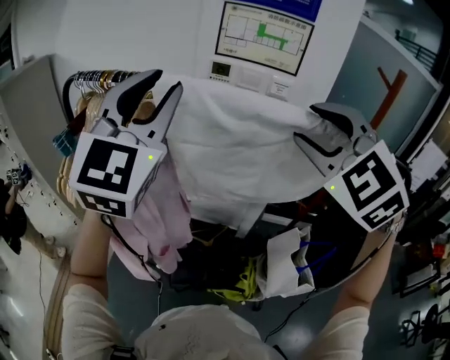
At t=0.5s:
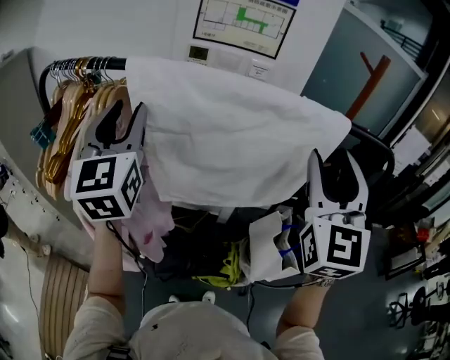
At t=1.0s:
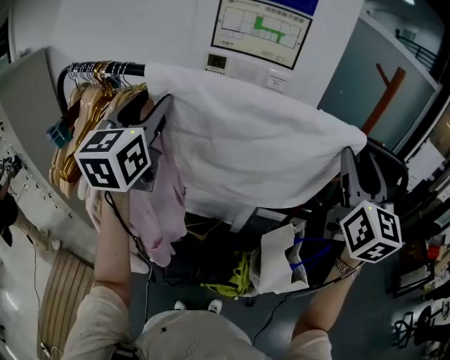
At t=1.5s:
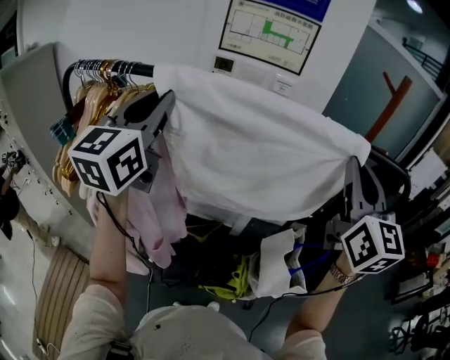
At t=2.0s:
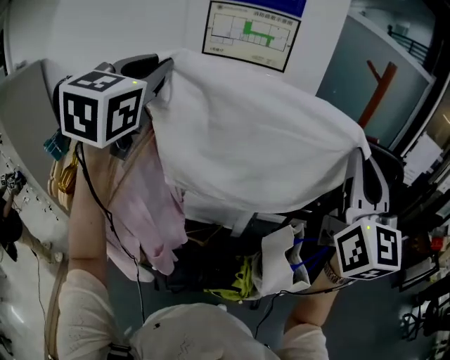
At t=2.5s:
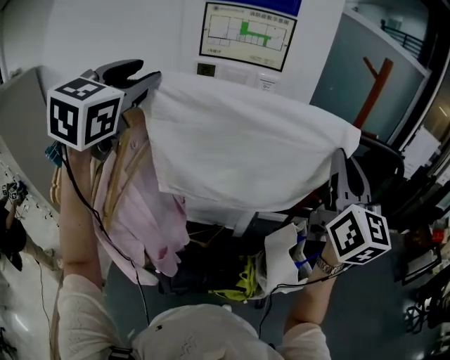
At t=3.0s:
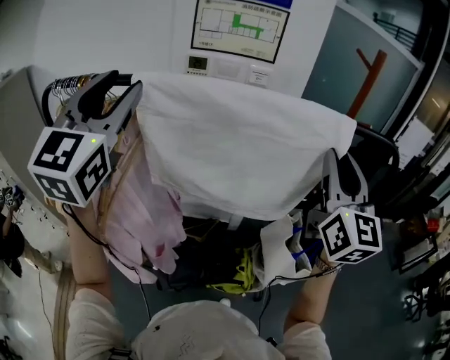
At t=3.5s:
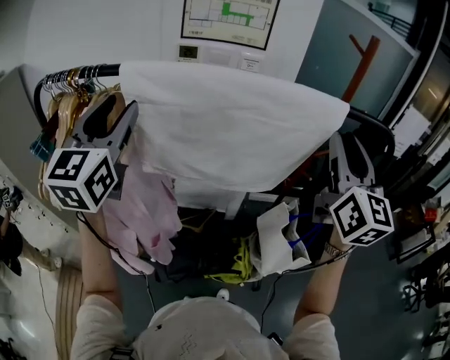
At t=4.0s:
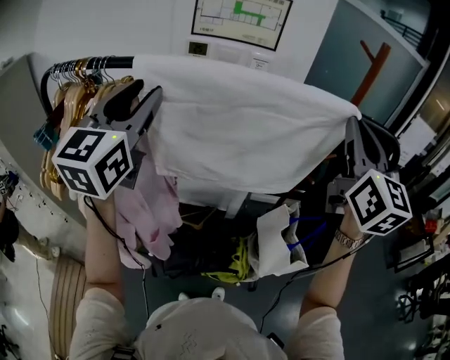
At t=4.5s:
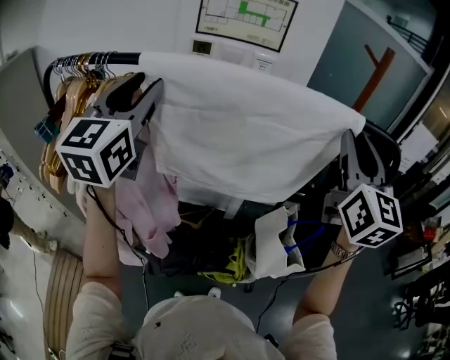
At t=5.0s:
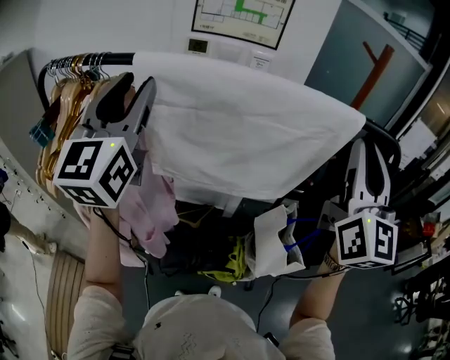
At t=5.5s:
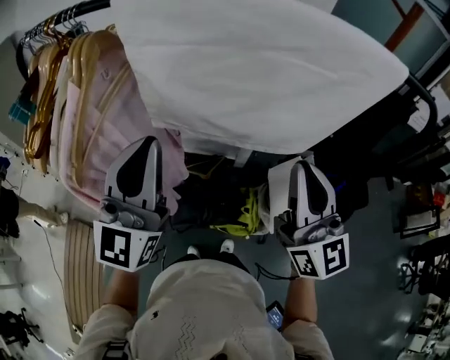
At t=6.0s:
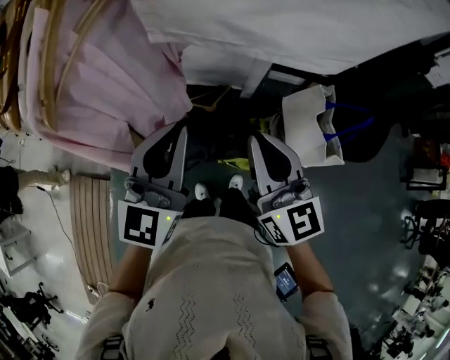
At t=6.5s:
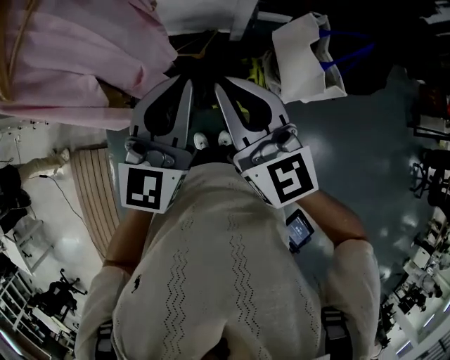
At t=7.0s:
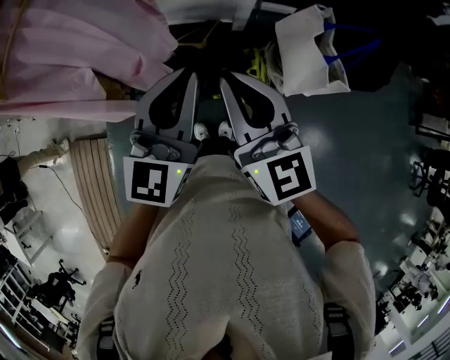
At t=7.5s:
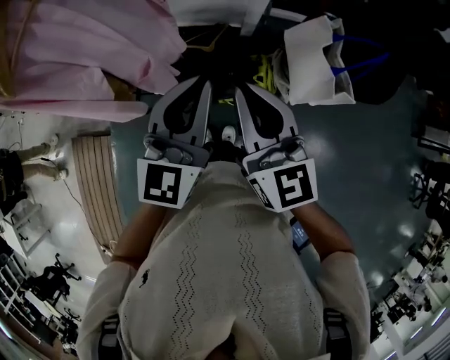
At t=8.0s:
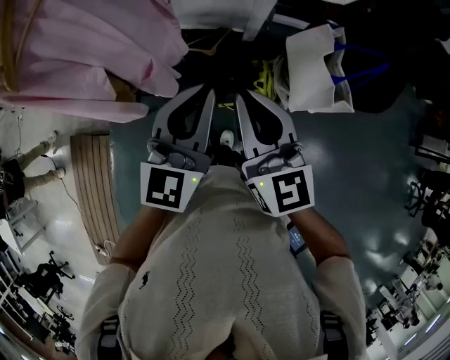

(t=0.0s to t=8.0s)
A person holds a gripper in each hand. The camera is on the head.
t=0.0s - t=2.0s: The left gripper goes about 5 cm forward, reaches roughly 10 cm downward, then returns, and opens and closes again; the right gripper moves to the right, roughly 15 cm, tips its fingers upward by some 40 degrees, and closes its fingers.
t=2.0s - t=4.0s: The left gripper is displaced downward by about 10 cm, and opens, while the right gripper opens, then closes again.
t=4.0s - t=6.0s: The left gripper moves downward and backward, some 35 cm, and closes up. The right gripper heads downward, to the left and backward, covering about 40 cm, and rotates approximately 30 degrees.
t=6.0s - t=8.0s: The left gripper heads to the right and downward, covering about 10 cm. Meanwhile the right gripper shifts by some 5 cm.

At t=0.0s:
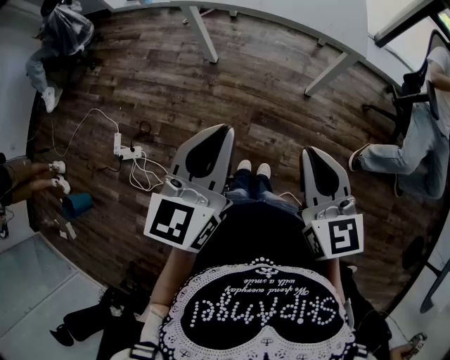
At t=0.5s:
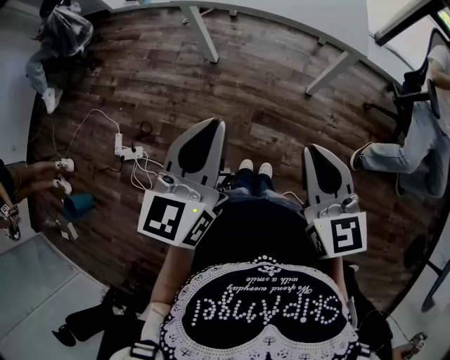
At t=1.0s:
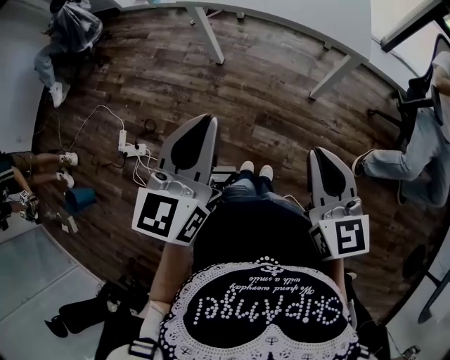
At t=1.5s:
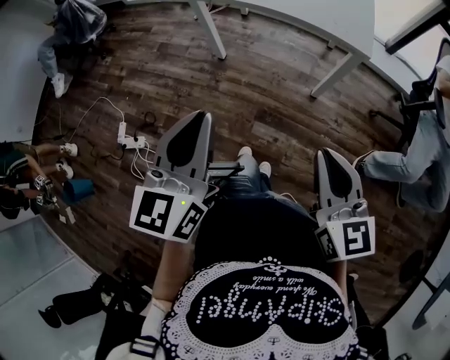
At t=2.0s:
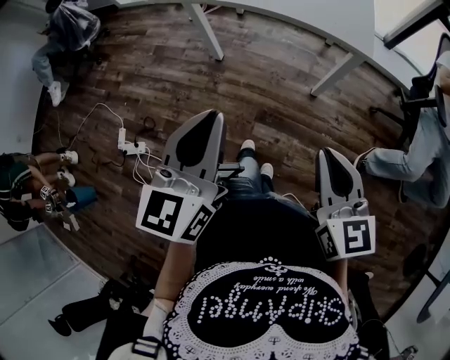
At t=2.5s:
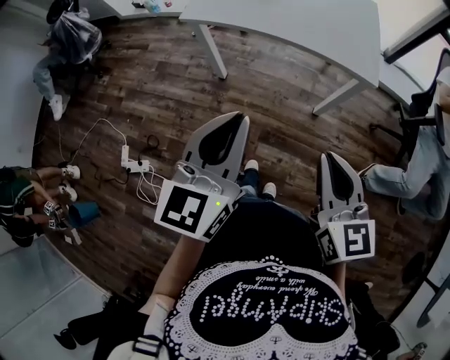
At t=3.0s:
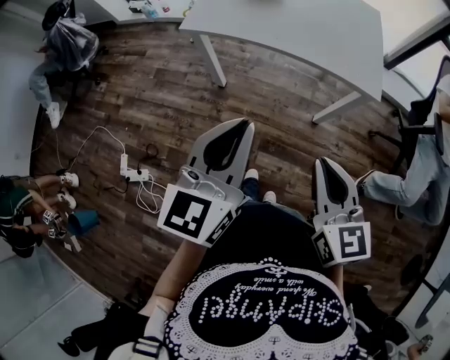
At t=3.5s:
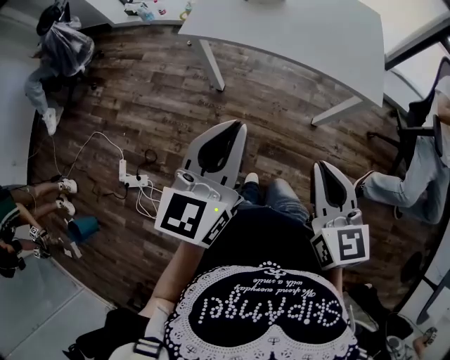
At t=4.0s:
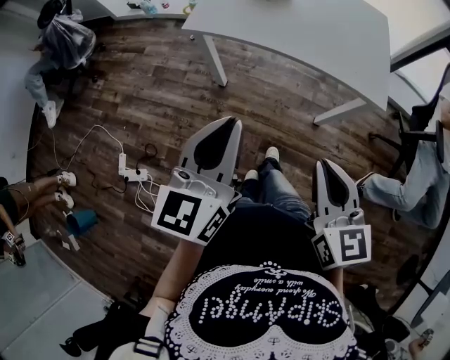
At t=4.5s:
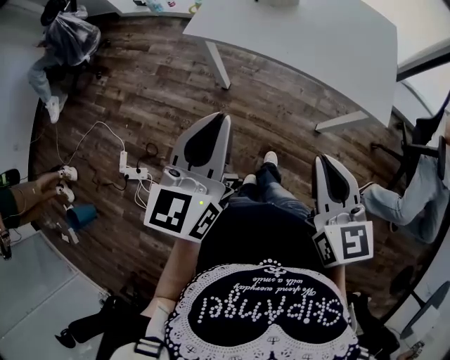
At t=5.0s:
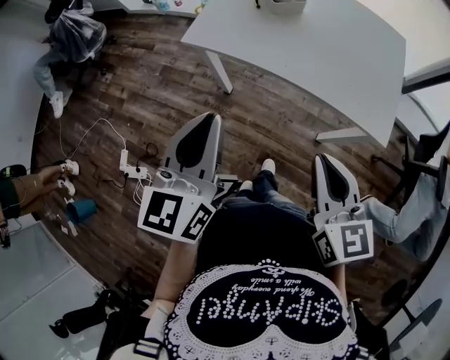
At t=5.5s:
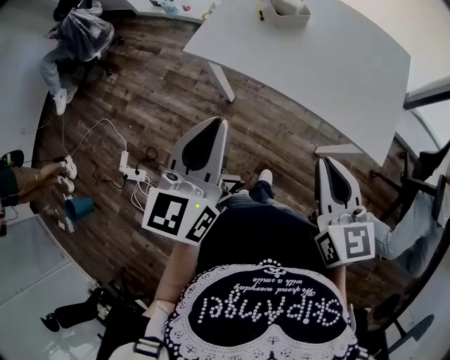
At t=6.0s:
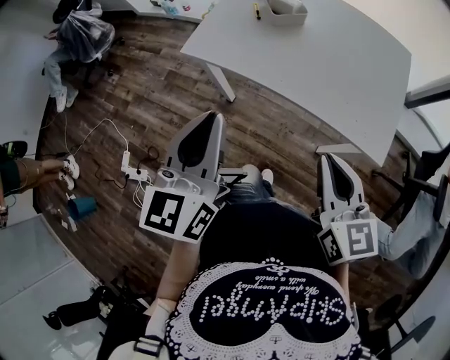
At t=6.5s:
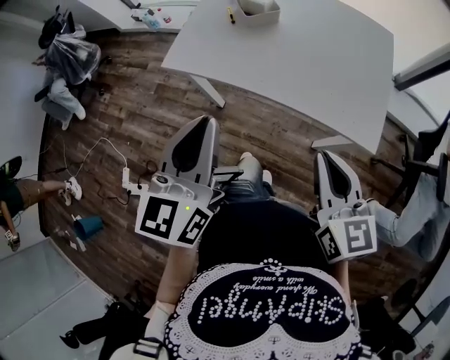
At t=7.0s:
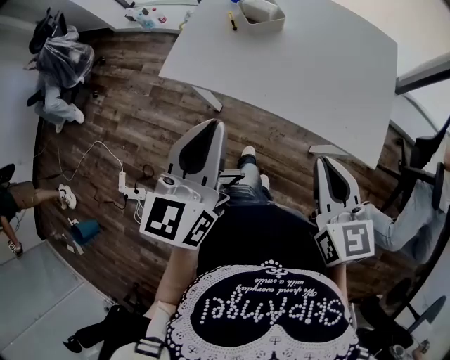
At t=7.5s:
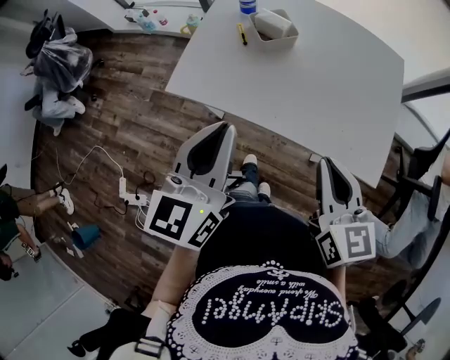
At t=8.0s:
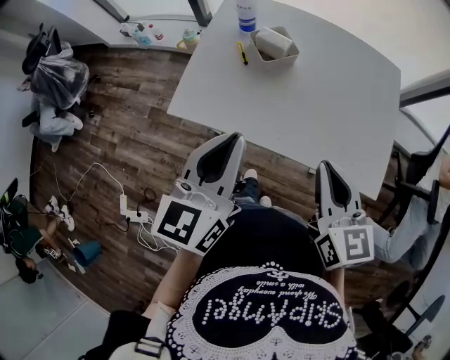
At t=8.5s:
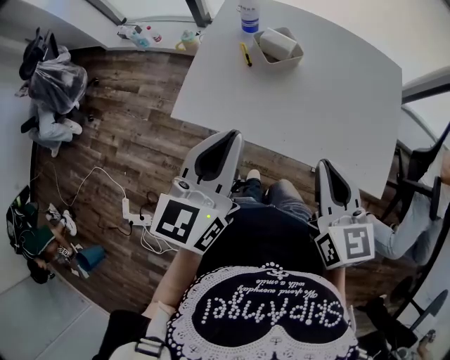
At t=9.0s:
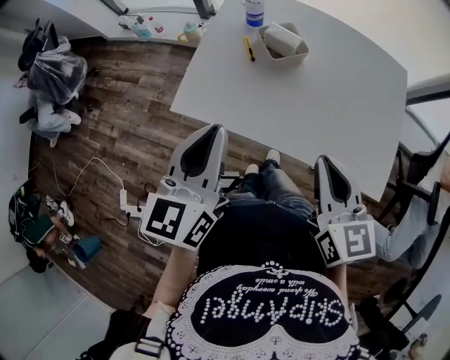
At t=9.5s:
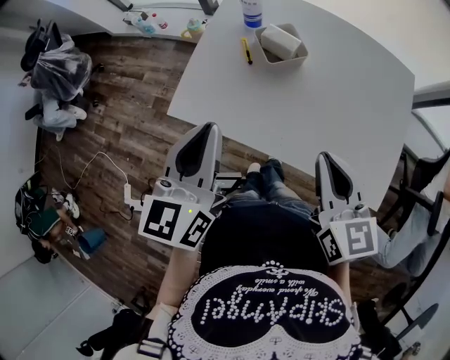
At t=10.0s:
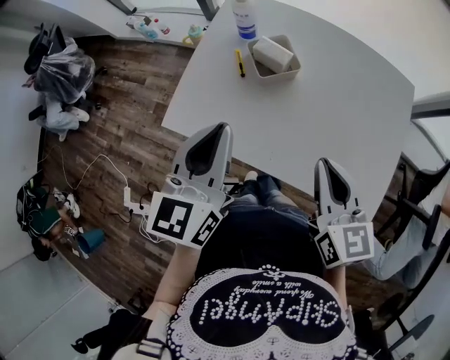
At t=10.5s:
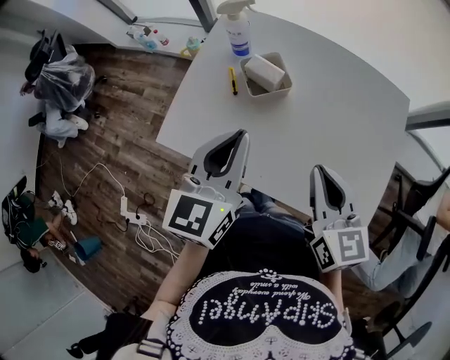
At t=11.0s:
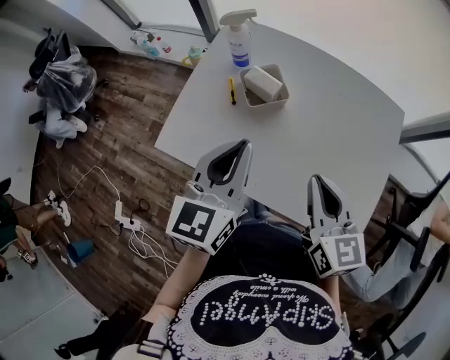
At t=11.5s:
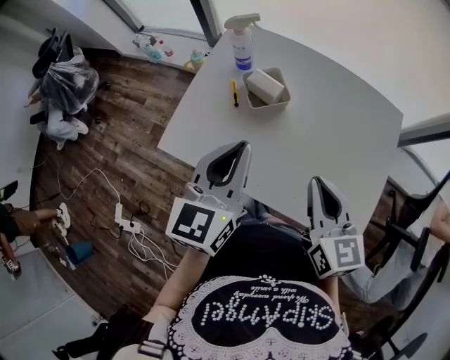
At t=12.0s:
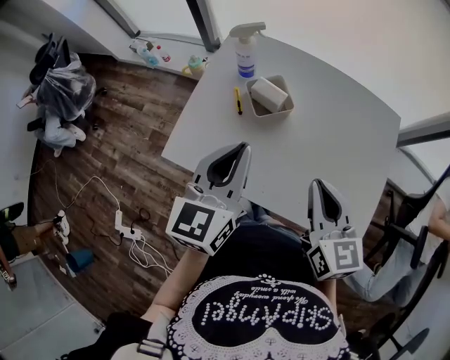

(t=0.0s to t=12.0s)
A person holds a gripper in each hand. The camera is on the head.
t=0.0s - t=2.0s: The right gripper is displaced to the right by some 5 cm.
t=2.0s - t=4.0s: The left gripper shifts about 15 cm forward; the right gripper shifts about 15 cm forward and to the left.
t=4.0s - t=6.0s: The right gripper travels forward and to the right by some 15 cm; the left gripper heads forward, covering about 10 cm.
t=6.0s - t=8.0s: Both grippers travel together forward, approximately 15 cm.
t=8.0s - t=10.0s: Both grippers move forward, about 10 cm.

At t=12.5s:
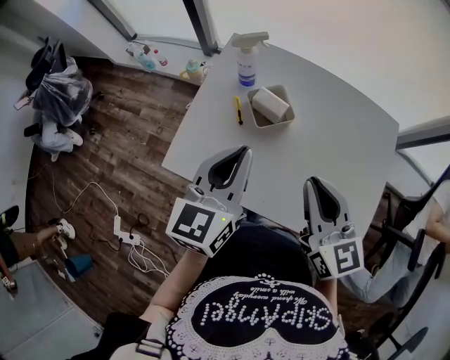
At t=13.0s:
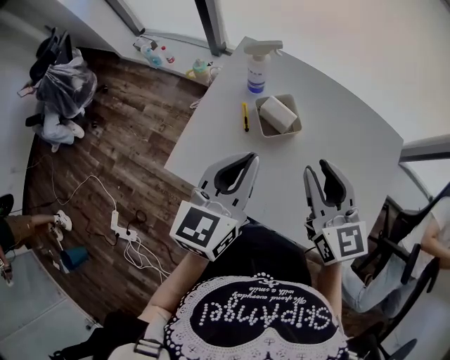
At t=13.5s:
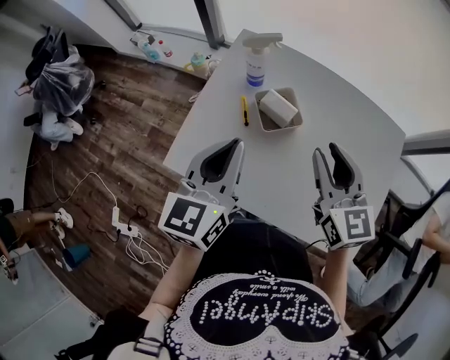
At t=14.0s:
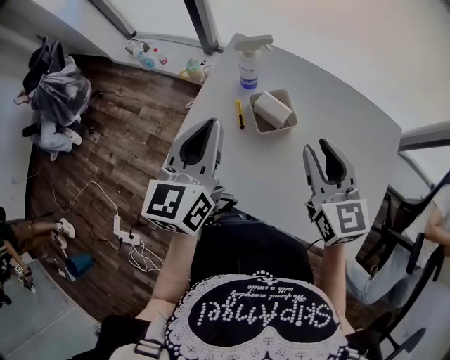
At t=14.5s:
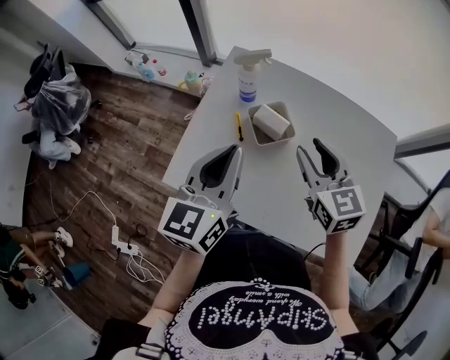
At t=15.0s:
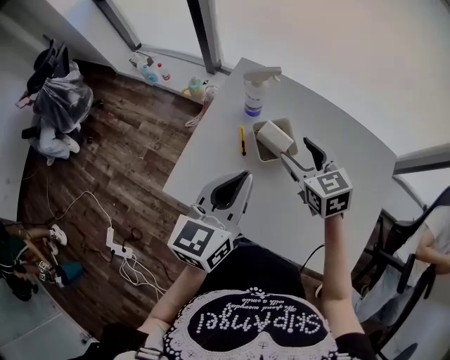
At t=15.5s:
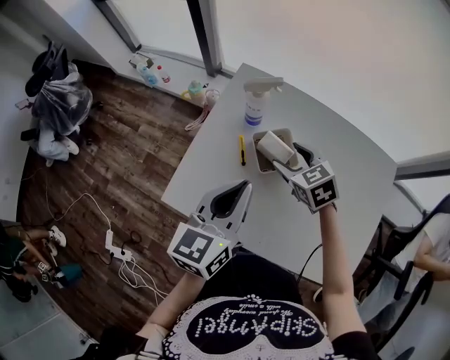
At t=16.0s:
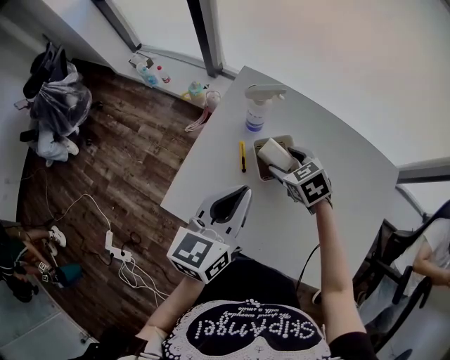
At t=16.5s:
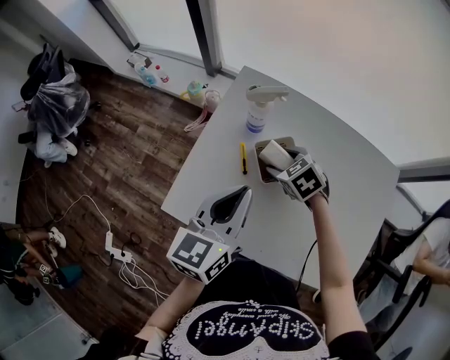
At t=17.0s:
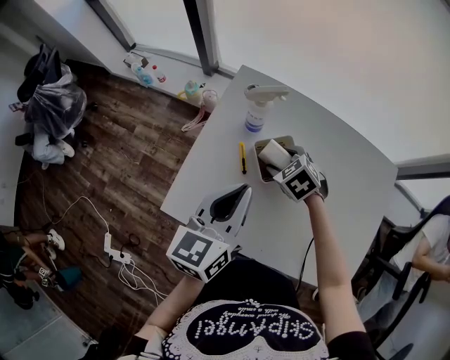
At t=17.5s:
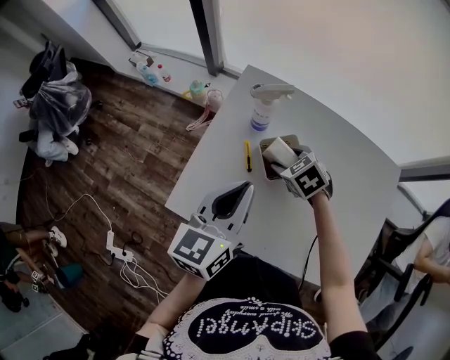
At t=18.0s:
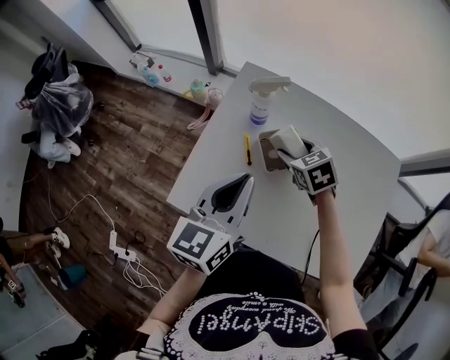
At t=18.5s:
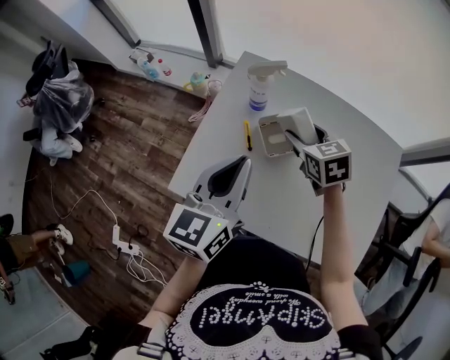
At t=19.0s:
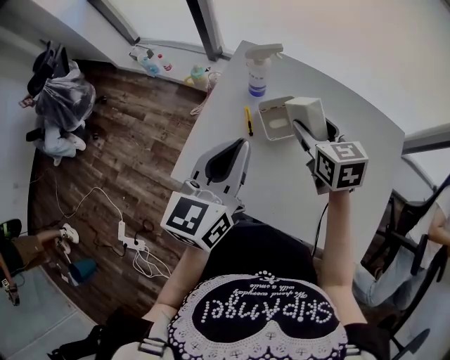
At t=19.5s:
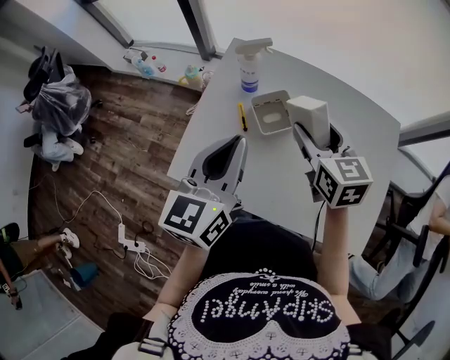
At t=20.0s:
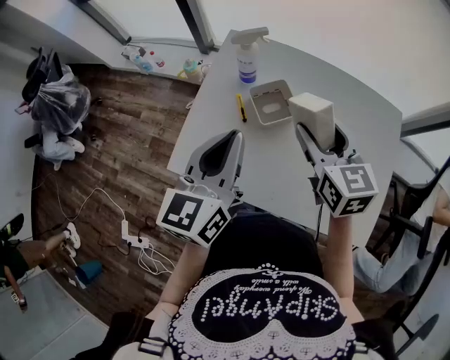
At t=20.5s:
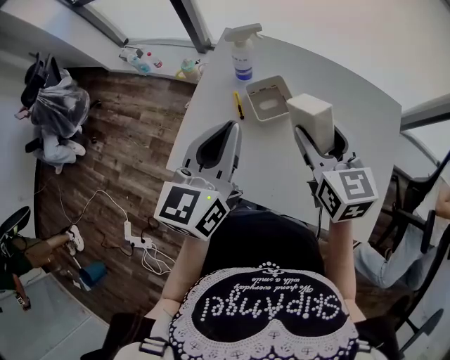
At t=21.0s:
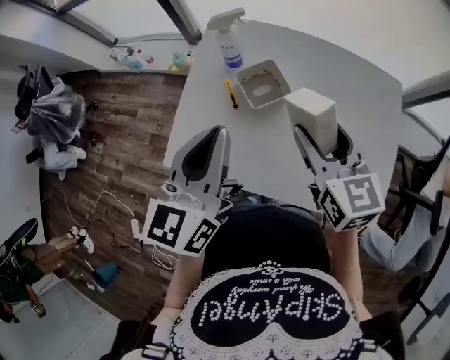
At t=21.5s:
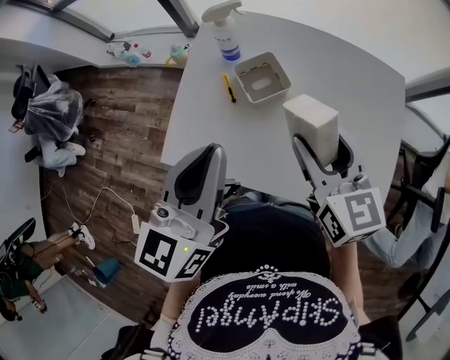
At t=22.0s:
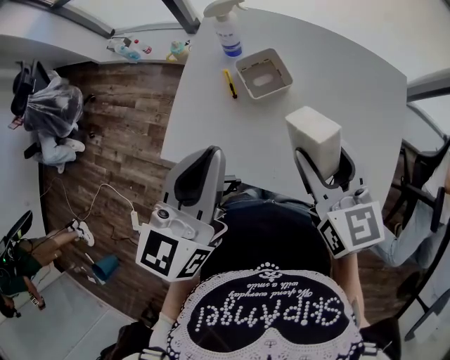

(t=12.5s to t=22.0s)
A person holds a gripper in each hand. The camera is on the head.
t=12.5s - t=14.5s: The right gripper is displaced forward by roughly 10 cm, and opens its fingers.
t=14.5s - t=16.5s: The right gripper shifts some 20 cm downward, forward and to the left, tilts its fingers roughly 40 degrees downward, and opens up.
t=16.5s - t=18.0s: There are only small adjustments of the grippers.
t=18.0s - t=20.0s: The right gripper travels upward and backward by roughly 20 cm, and swivels about 30 degrees.
t=20.0s - t=22.0s: The left gripper goes some 5 cm backward. The right gripper travels backward by roughly 10 cm.
